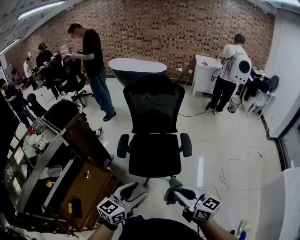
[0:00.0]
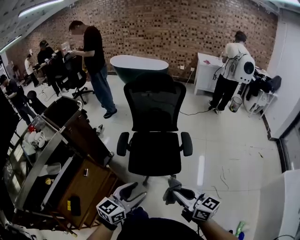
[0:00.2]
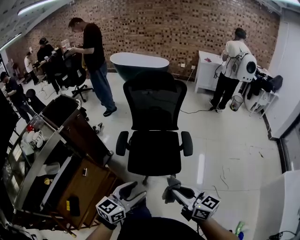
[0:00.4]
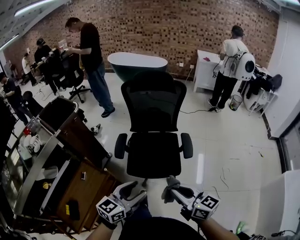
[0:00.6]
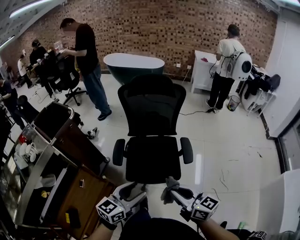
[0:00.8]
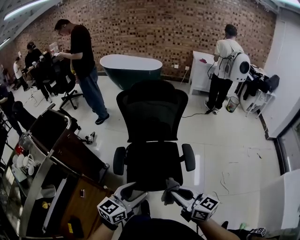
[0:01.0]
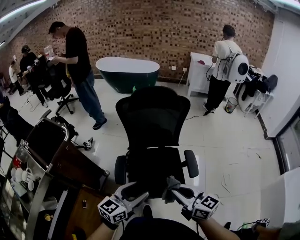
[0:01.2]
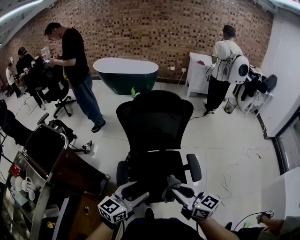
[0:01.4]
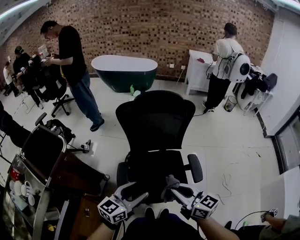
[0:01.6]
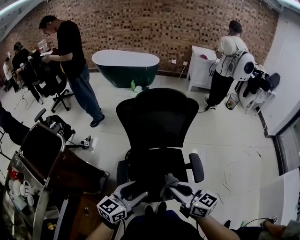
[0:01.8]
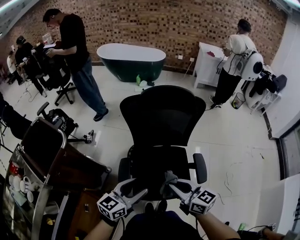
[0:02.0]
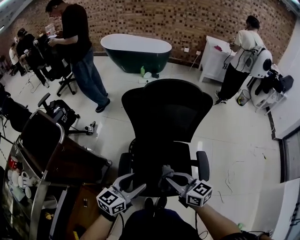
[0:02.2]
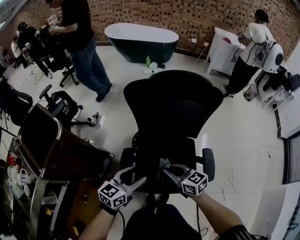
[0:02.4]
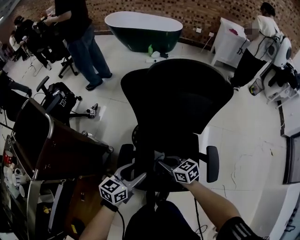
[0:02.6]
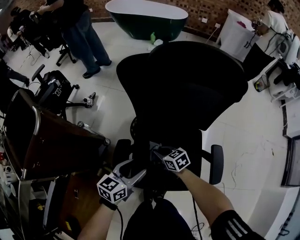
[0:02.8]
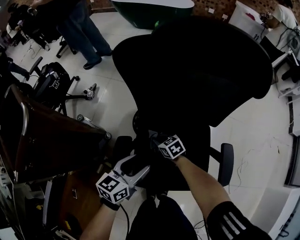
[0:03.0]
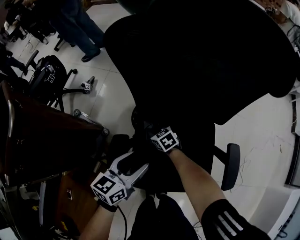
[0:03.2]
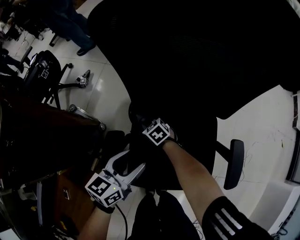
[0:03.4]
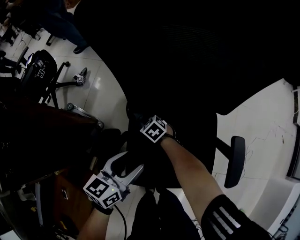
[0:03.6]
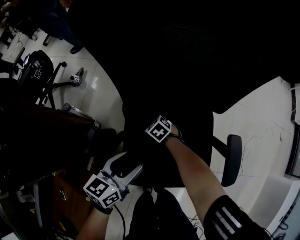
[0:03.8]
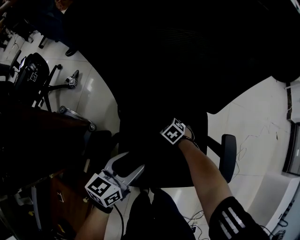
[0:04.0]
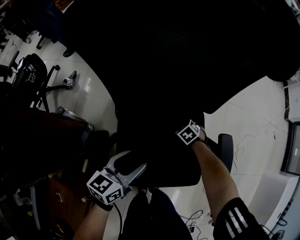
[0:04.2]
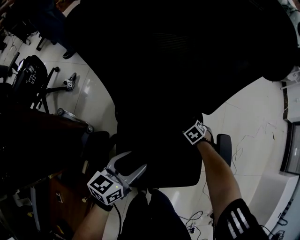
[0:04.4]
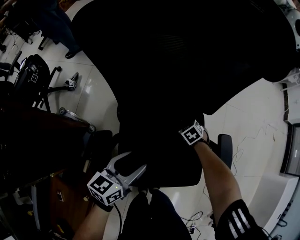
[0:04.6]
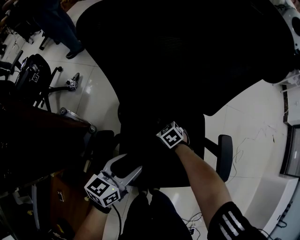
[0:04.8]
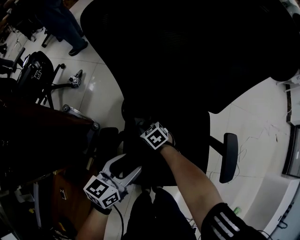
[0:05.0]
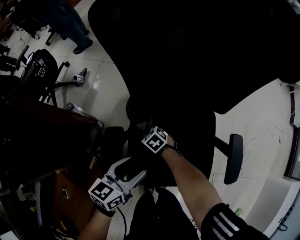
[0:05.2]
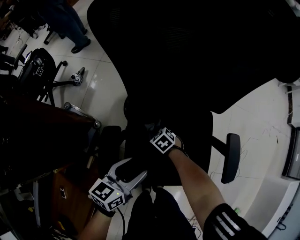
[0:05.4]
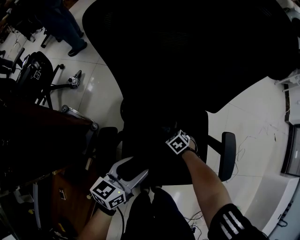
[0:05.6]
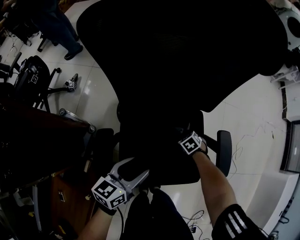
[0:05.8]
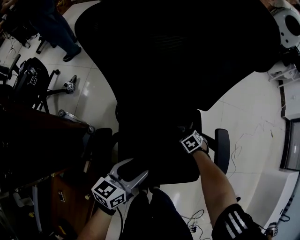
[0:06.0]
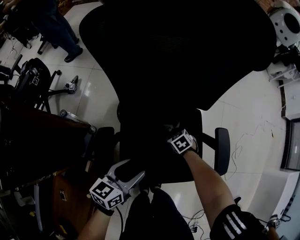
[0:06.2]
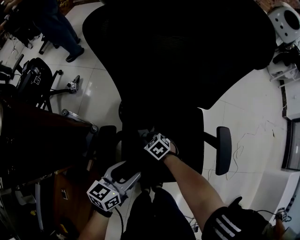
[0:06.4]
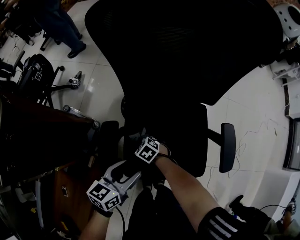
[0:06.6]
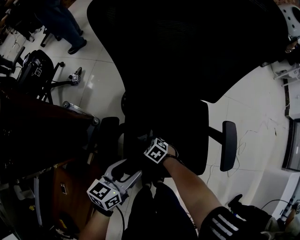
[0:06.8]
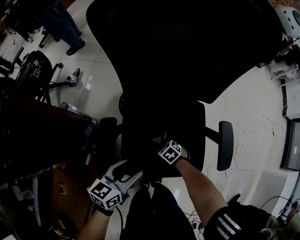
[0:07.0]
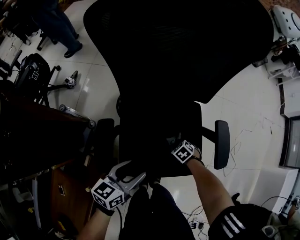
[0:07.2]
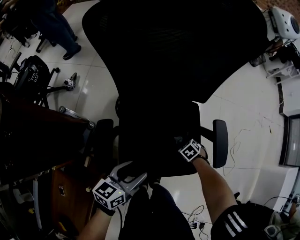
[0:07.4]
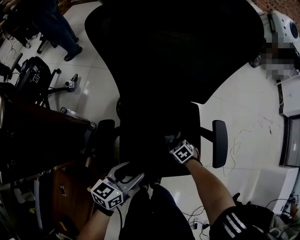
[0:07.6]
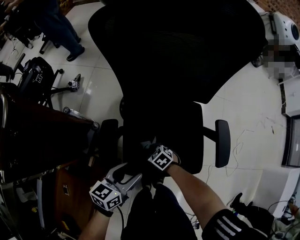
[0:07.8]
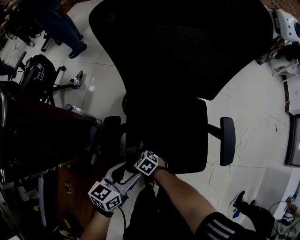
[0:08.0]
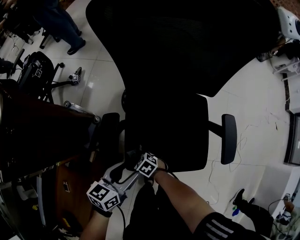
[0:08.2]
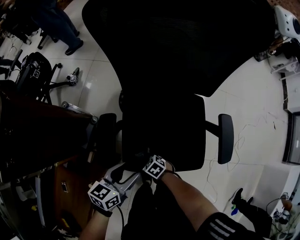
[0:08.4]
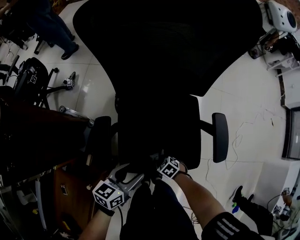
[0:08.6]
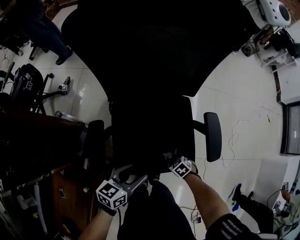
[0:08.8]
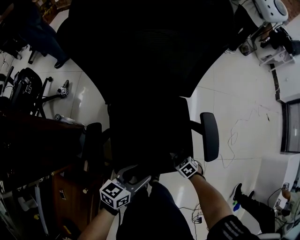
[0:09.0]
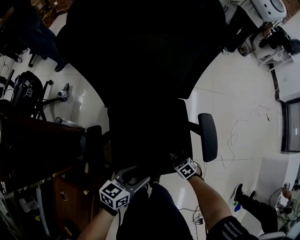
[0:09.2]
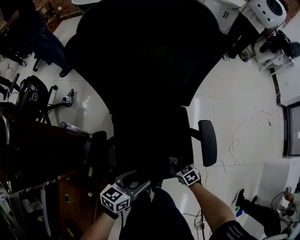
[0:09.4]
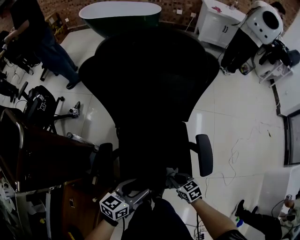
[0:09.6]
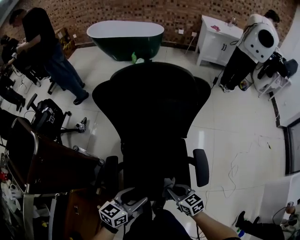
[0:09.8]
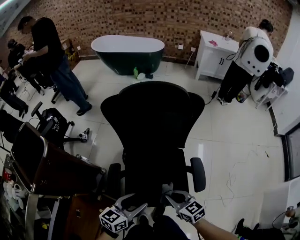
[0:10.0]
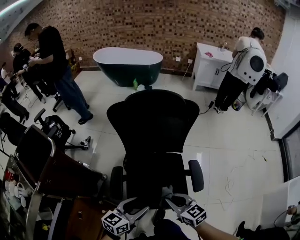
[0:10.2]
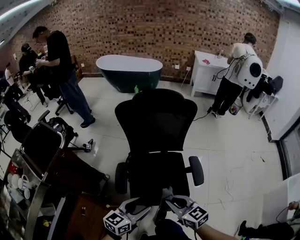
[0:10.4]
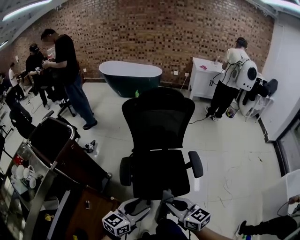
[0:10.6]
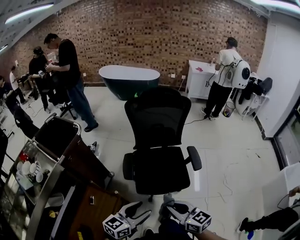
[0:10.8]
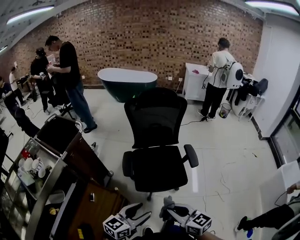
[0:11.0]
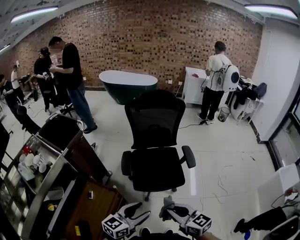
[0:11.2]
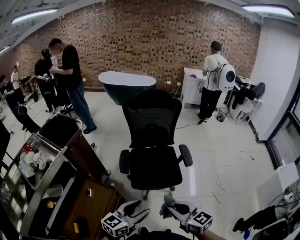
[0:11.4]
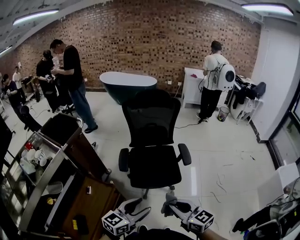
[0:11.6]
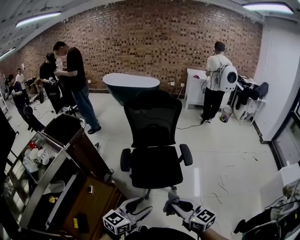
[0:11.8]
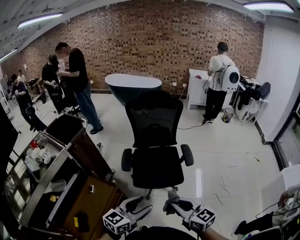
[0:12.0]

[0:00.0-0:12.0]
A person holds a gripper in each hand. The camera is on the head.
0:00.0 to 0:01.6: Both grippers travel together forward, approximately 30 cm.
0:01.6 to 0:03.0: The right gripper shifts some 60 cm downward and forward, and tips its fingers downward by approximately 40 degrees, while the left gripper heads downward and forward, covering roughly 30 cm, and changes its angle by approximately 20 degrees.
0:03.0 to 0:04.4: The left gripper heads downward, covering about 5 cm; the right gripper shifts by about 30 cm, and swivels about 40 degrees.
0:06.0 to 0:07.6: The left gripper ends up roughly 5 cm from where it was.
0:07.6 to 0:09.0: The left gripper ends up approximately 10 cm from where it was.
0:09.0 to 0:10.4: The right gripper is displaced upward by some 50 cm, and tips its fingers upward by some 50 degrees. The left gripper moves upward, roughly 25 cm, and turns by about 20 degrees.
0:10.4 to 0:12.0: The grippers both shift backward by approximately 30 cm.

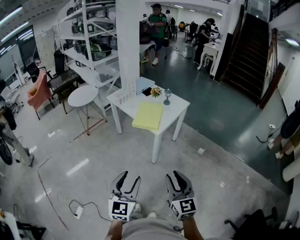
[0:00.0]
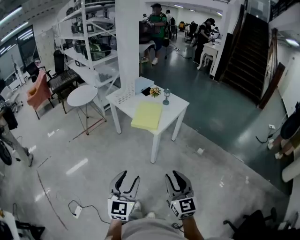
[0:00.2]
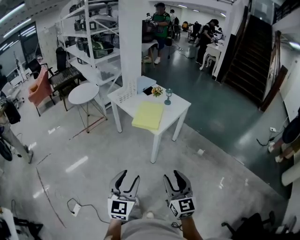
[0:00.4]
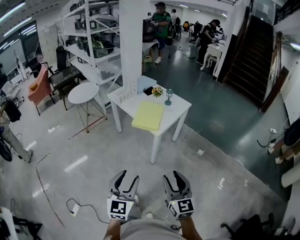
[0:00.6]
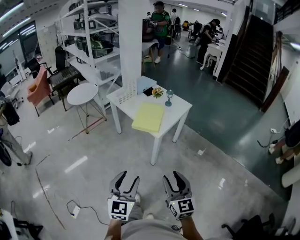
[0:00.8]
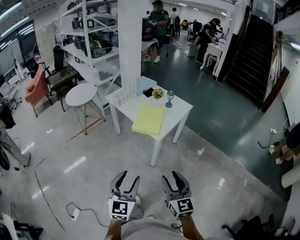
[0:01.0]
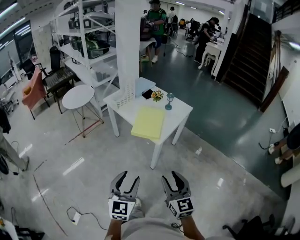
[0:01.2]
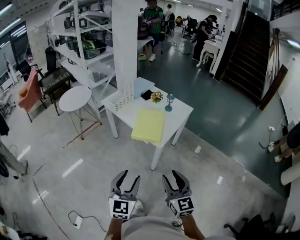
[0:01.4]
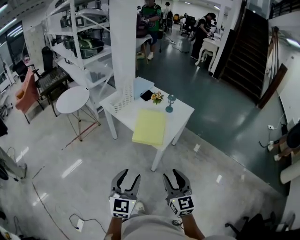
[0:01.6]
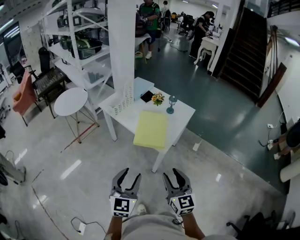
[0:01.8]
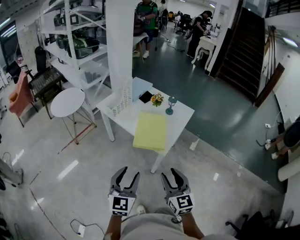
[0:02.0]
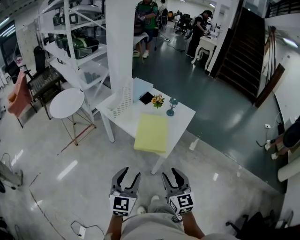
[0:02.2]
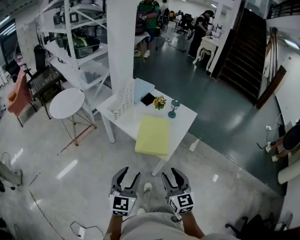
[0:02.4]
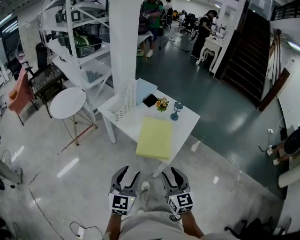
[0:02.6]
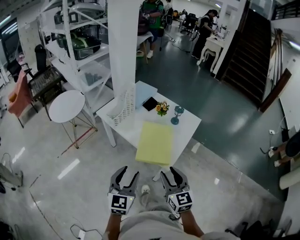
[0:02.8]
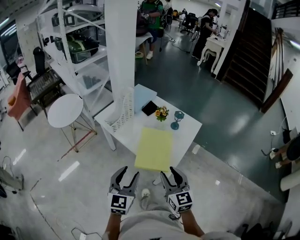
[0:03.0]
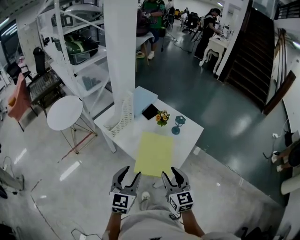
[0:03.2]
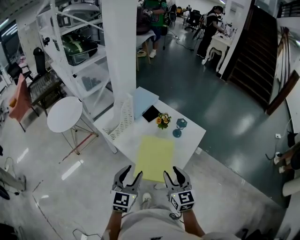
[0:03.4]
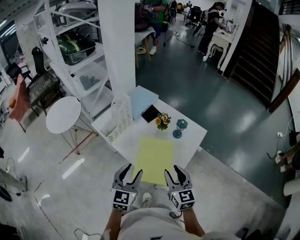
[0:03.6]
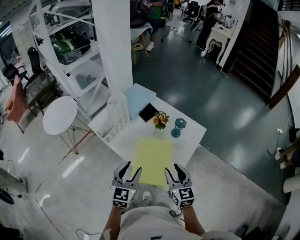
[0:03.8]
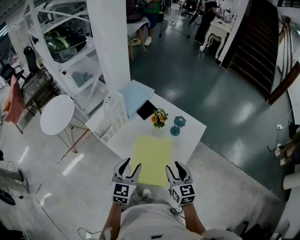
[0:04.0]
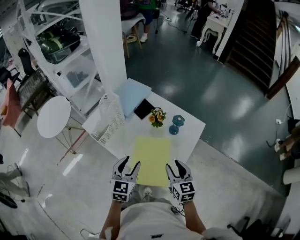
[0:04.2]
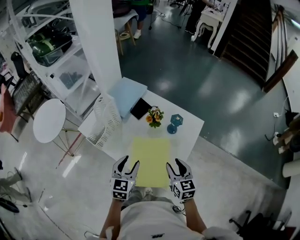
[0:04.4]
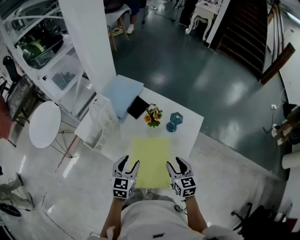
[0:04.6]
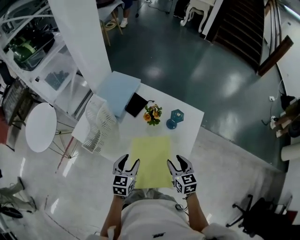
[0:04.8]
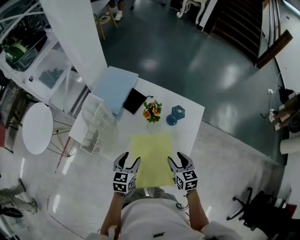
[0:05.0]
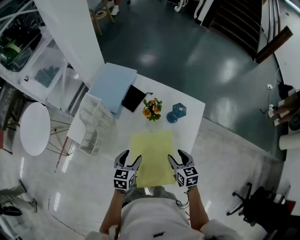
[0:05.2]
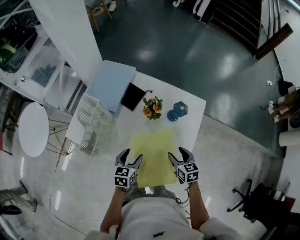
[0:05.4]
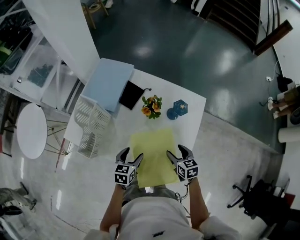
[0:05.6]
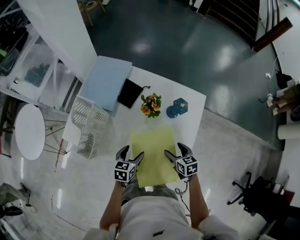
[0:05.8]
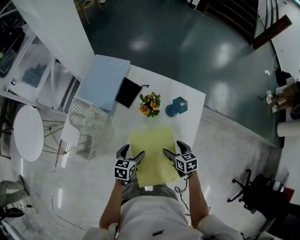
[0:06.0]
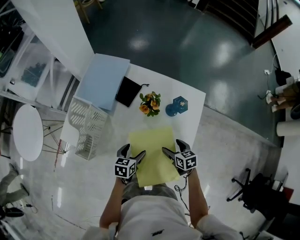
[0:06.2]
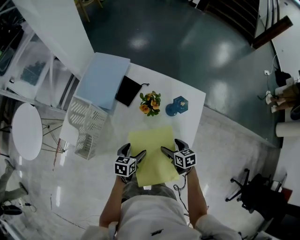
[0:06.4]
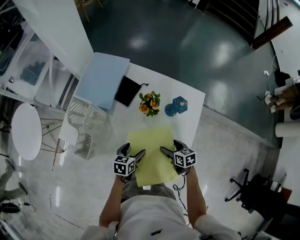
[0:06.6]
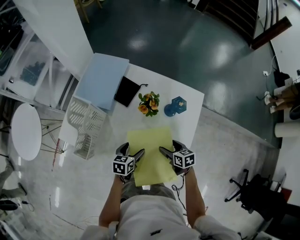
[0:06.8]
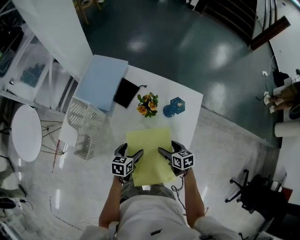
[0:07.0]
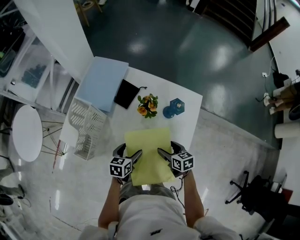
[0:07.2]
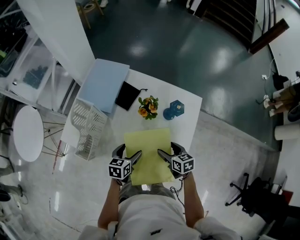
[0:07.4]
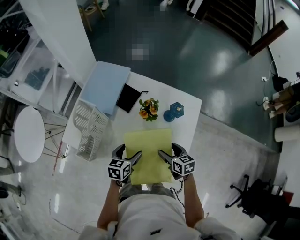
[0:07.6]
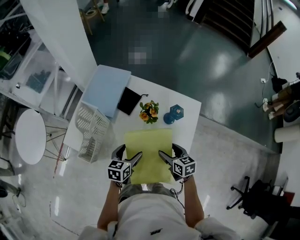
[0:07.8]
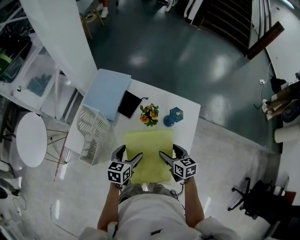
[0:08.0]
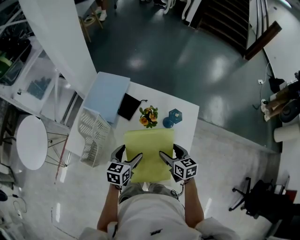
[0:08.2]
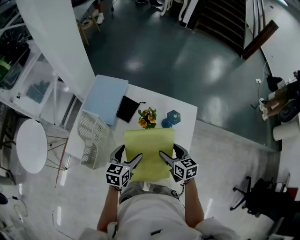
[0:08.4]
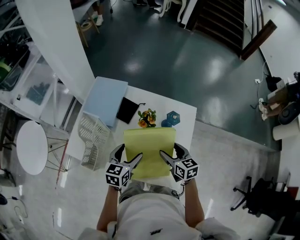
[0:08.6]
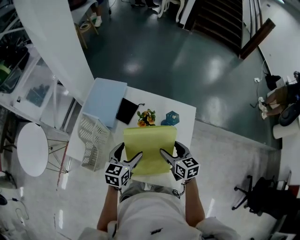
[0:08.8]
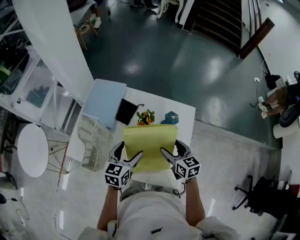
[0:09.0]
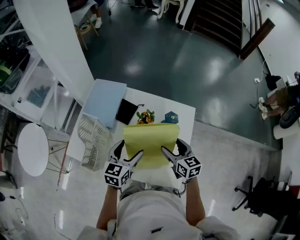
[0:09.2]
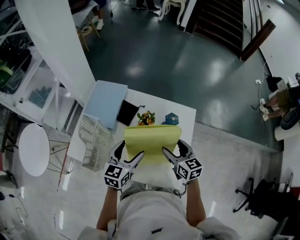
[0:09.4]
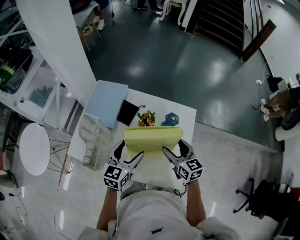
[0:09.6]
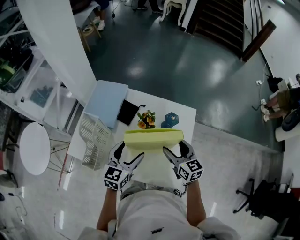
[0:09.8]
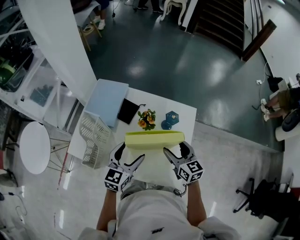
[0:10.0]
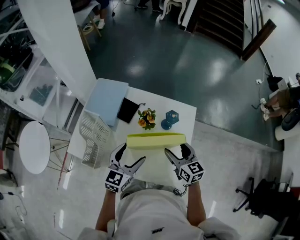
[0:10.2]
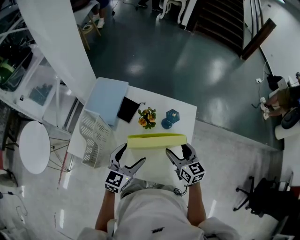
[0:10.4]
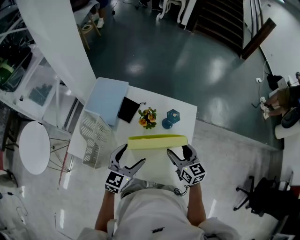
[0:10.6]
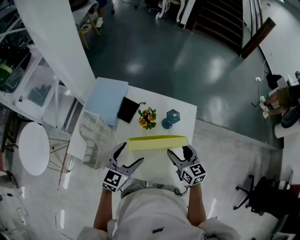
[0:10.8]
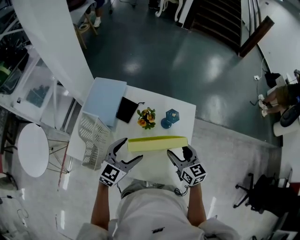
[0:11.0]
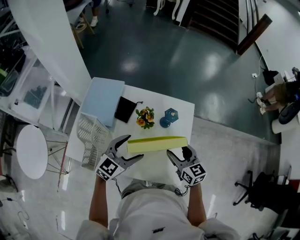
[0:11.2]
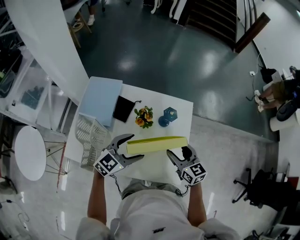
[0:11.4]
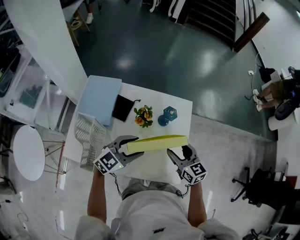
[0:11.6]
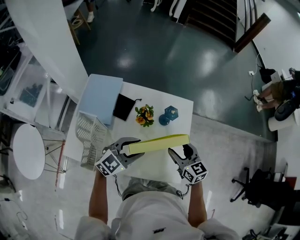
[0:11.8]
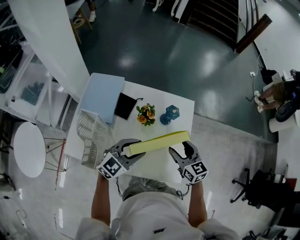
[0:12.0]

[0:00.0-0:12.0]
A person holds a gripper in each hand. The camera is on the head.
0:00.0 to 0:01.6: The two grippers go some 25 cm forward.
0:01.6 to 0:03.0: Both grippers travel together forward, approximately 25 cm.
0:03.0 to 0:04.4: Both grippers move forward and downward, roughly 25 cm.
0:04.4 to 0:06.0: Both grippers move downward and forward, about 20 cm. The left gripper rotates about 40 degrees, and opens; the right gripper swivels approximately 30 degrees, and opens.
0:06.0 to 0:07.6: The right gripper shifts by about 5 cm; the left gripper heads upward, covering some 5 cm.
0:07.6 to 0:09.0: The two grippers go some 10 cm upward.
0:09.0 to 0:10.4: The left gripper changes place by roughly 5 cm.
0:10.4 to 0:12.0: The left gripper swivels approximately 30 degrees, and closes.
